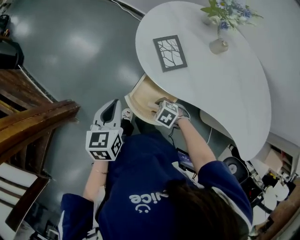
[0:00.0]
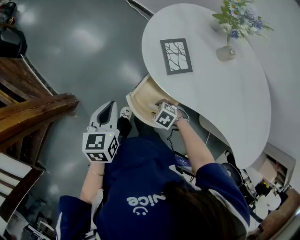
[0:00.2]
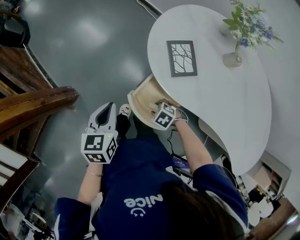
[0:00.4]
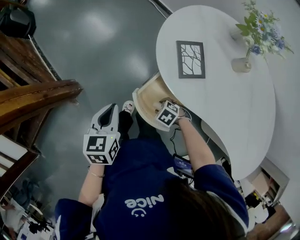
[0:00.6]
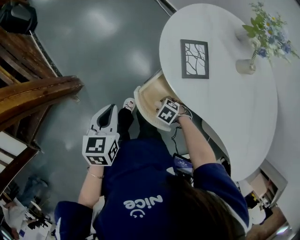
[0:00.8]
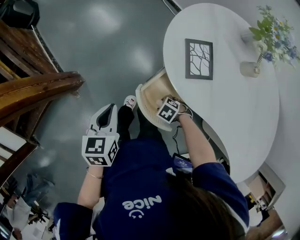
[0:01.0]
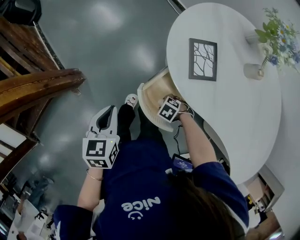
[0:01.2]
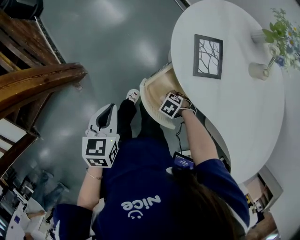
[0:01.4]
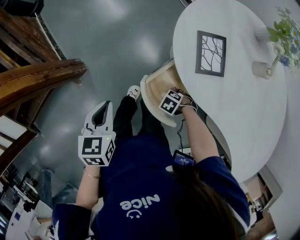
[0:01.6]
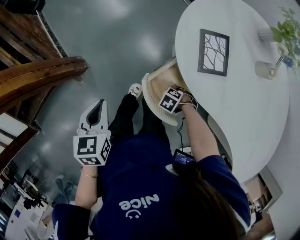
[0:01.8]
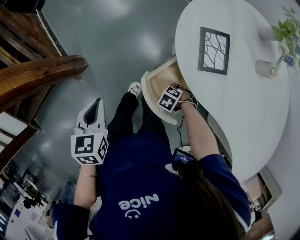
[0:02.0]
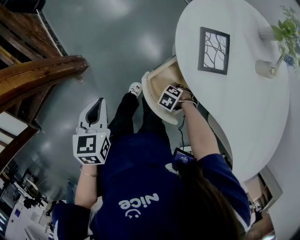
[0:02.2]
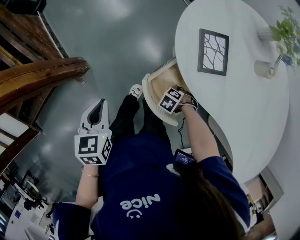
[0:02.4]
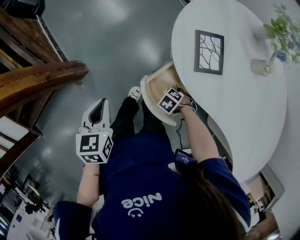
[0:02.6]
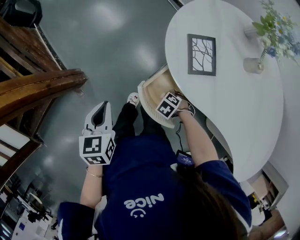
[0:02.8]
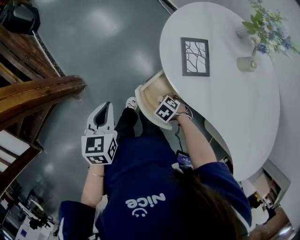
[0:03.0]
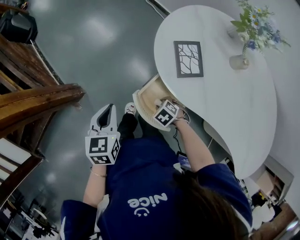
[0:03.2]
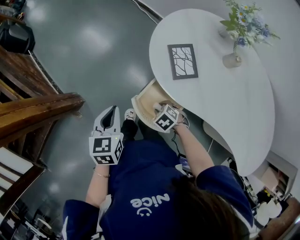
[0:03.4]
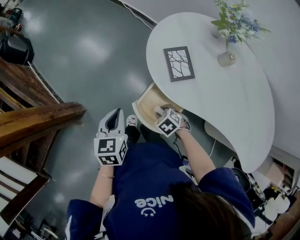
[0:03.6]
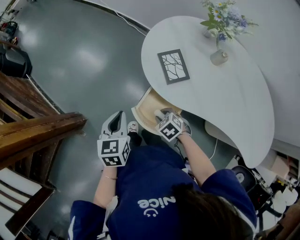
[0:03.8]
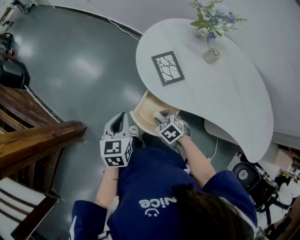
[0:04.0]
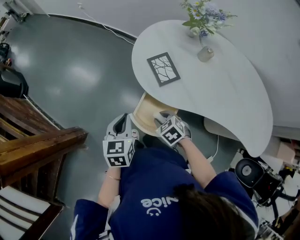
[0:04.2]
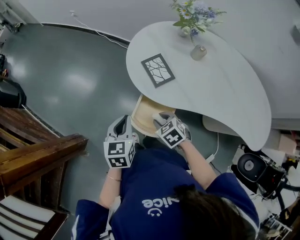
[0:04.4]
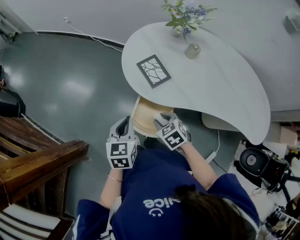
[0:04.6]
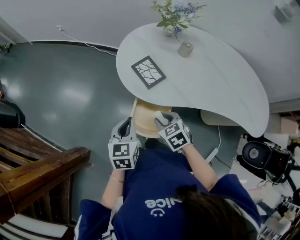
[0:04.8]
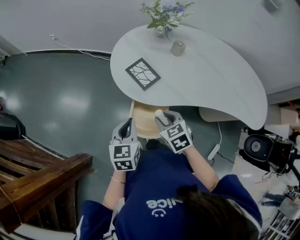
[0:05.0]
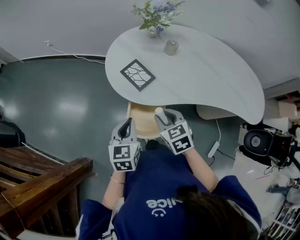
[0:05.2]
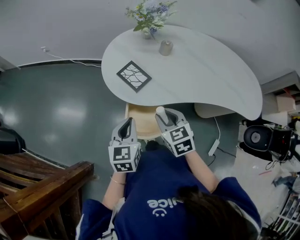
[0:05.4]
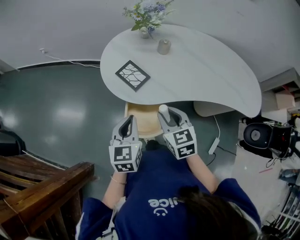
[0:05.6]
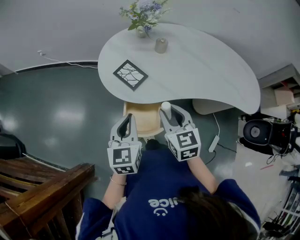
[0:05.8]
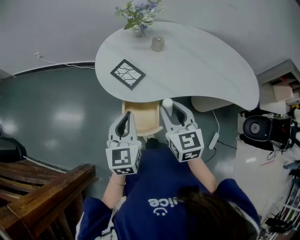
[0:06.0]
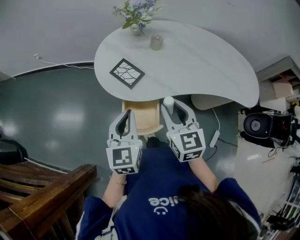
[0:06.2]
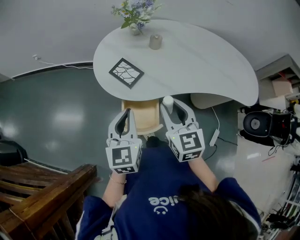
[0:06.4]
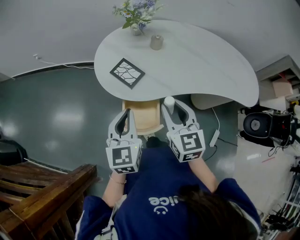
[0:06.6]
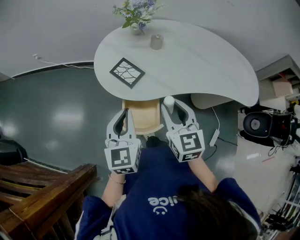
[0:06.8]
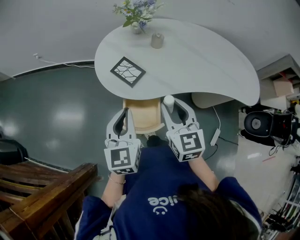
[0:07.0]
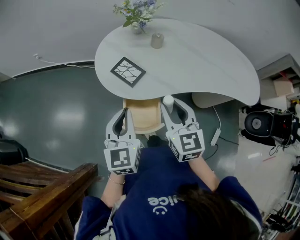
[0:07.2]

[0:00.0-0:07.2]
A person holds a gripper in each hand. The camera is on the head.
0:00.0 to 0:01.4: The right gripper shifts roughly 10 cm downward, and rotates approximately 20 degrees, while the left gripper changes place by roughly 10 cm.
0:01.4 to 0:02.8: The right gripper closes its fingers.
0:02.8 to 0:04.4: The right gripper goes approximately 20 cm upward, and swivels roughly 50 degrees; the left gripper ends up approximately 10 cm from where it was, and swivels roughly 30 degrees.
0:04.4 to 0:05.8: The left gripper heads upward, covering approximately 10 cm, and rotates about 20 degrees, while the right gripper goes about 15 cm upward, and tips its fingers upward by approximately 30 degrees.
0:05.8 to 0:07.2: The grippers make only small movements.

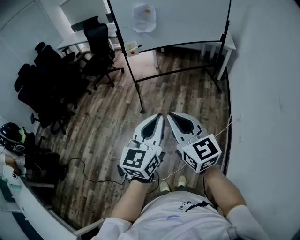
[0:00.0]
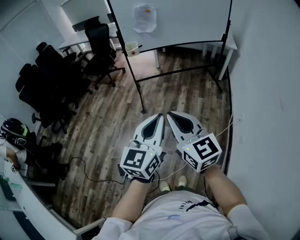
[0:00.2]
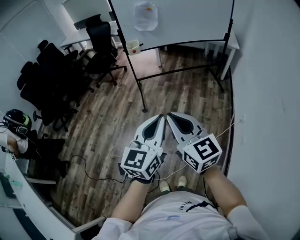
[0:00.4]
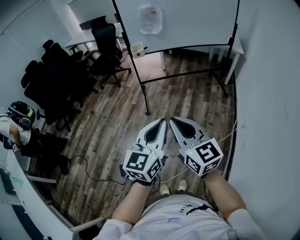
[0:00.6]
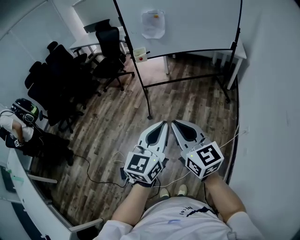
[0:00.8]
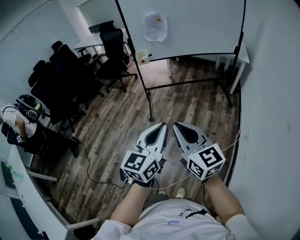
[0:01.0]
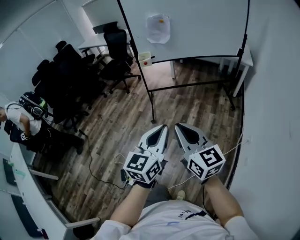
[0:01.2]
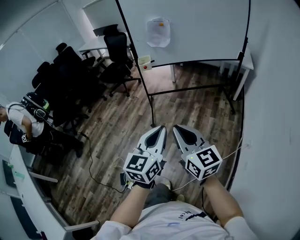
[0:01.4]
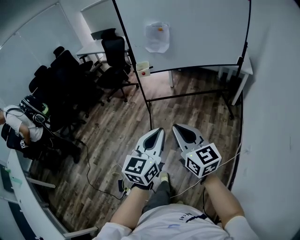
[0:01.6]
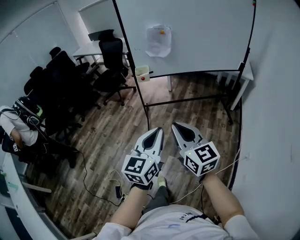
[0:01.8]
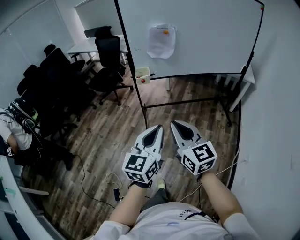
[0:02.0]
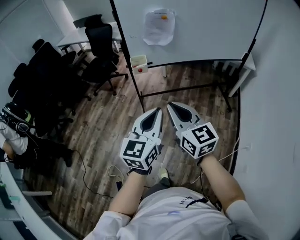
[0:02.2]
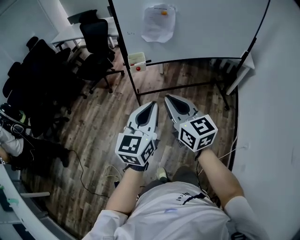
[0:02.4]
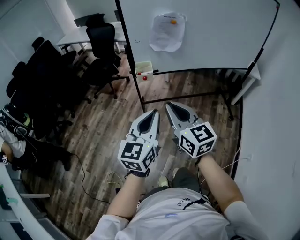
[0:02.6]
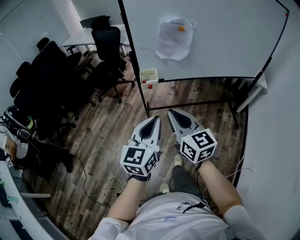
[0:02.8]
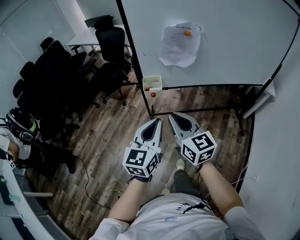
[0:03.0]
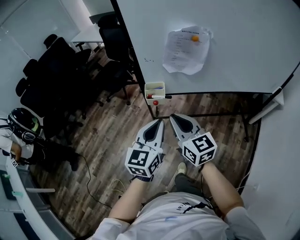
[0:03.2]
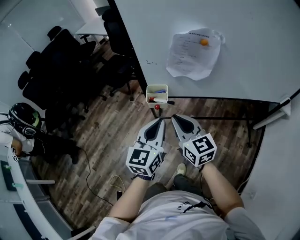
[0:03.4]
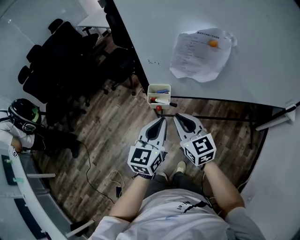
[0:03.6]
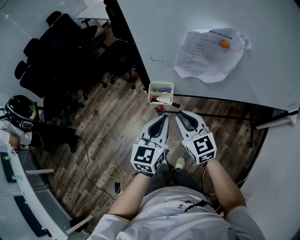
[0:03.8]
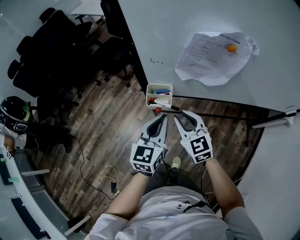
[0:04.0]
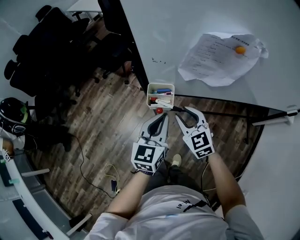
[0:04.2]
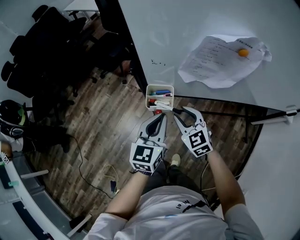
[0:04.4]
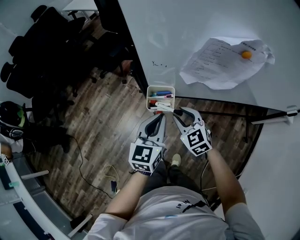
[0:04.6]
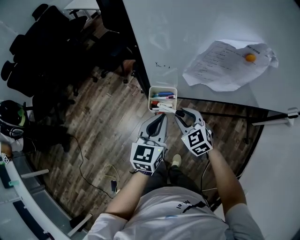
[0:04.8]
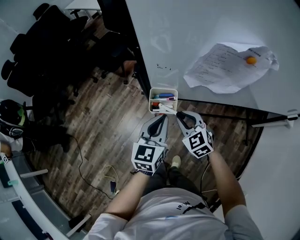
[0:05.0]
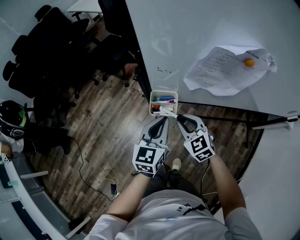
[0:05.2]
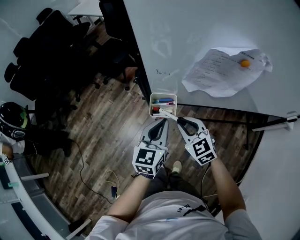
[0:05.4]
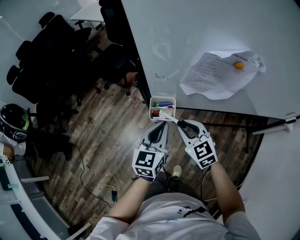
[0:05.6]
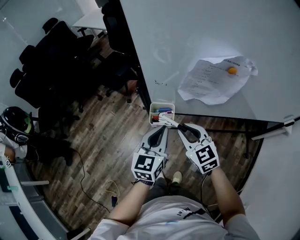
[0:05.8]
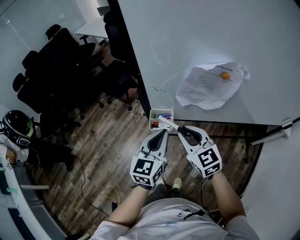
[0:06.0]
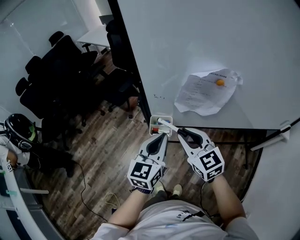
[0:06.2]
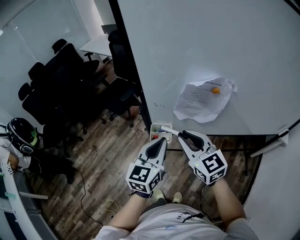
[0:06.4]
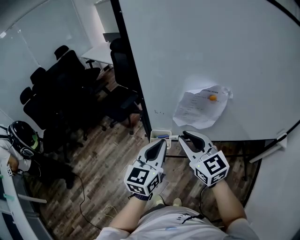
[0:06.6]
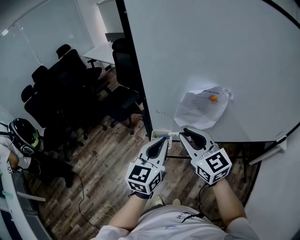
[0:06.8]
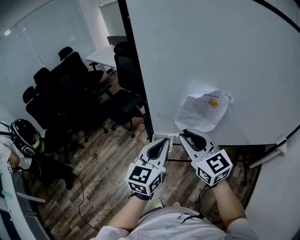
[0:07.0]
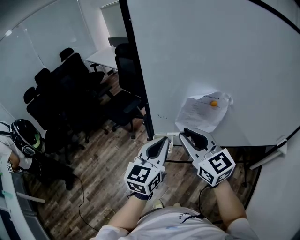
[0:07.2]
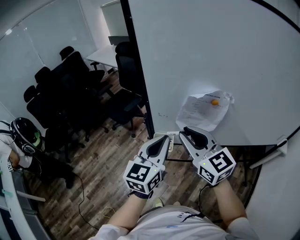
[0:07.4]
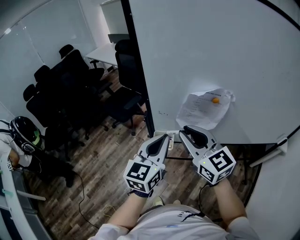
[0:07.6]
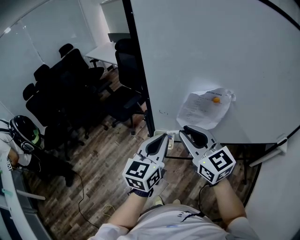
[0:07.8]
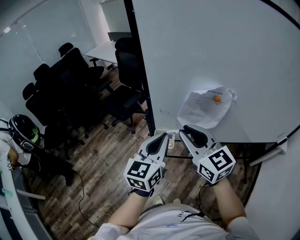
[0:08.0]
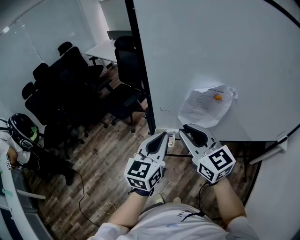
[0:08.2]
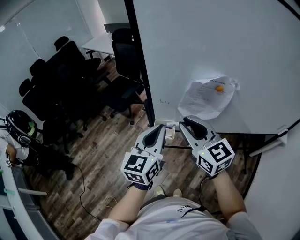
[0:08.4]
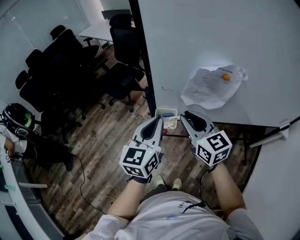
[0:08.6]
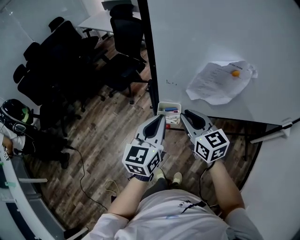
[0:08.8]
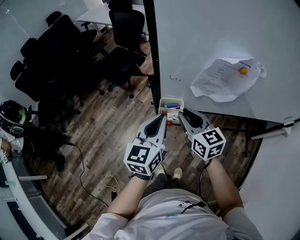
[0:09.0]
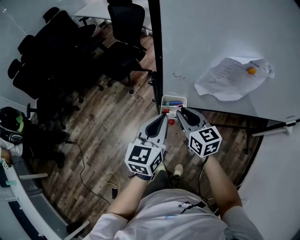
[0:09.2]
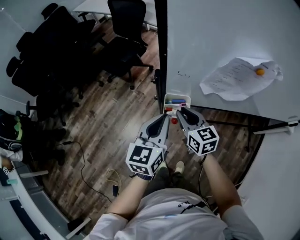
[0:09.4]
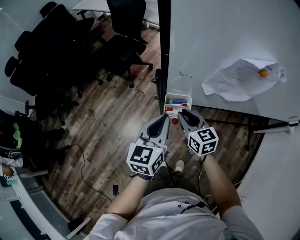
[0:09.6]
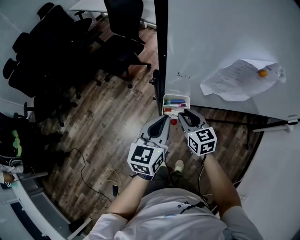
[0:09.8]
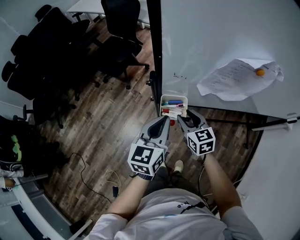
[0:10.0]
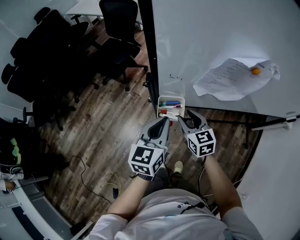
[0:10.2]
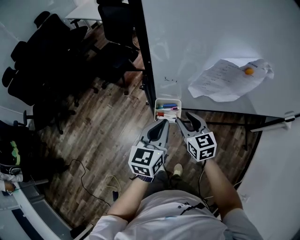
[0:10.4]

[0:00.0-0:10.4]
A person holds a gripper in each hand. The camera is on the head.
0:00.0 to 0:01.4: Both grippers travel together forward and to the right, roughly 10 cm.
0:01.4 to 0:03.0: Both grippers are carried forward, roughly 50 cm.
0:03.0 to 0:04.4: The two grippers go about 30 cm forward and downward. The right gripper turns by roughly 30 degrees, and opens its fingers.
0:04.4 to 0:06.0: The left gripper goes approximately 5 cm upward; the right gripper shifts roughly 15 cm upward.
0:06.0 to 0:07.4: Both grippers travel together upward, roughly 15 cm.
0:07.4 to 0:09.0: The right gripper shifts approximately 20 cm downward, and swivels some 20 degrees. The left gripper shifts about 15 cm downward and to the left.
0:09.0 to 0:10.4: The grippers both shift downward by roughly 10 cm.

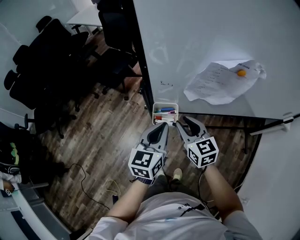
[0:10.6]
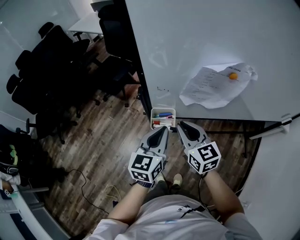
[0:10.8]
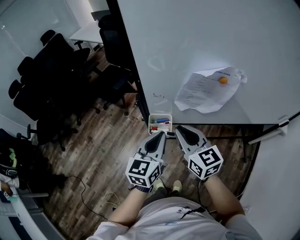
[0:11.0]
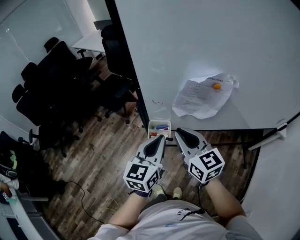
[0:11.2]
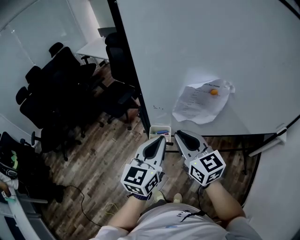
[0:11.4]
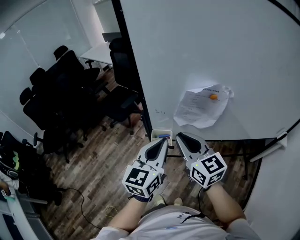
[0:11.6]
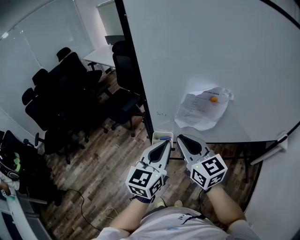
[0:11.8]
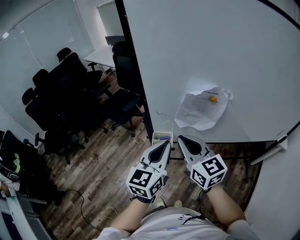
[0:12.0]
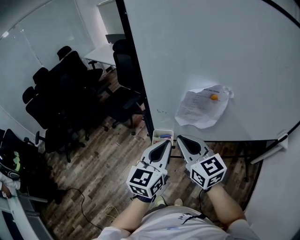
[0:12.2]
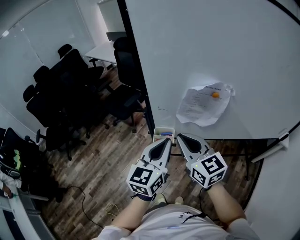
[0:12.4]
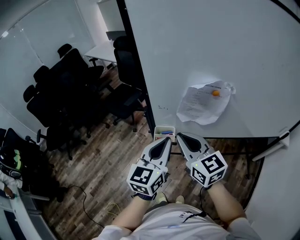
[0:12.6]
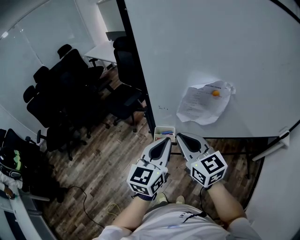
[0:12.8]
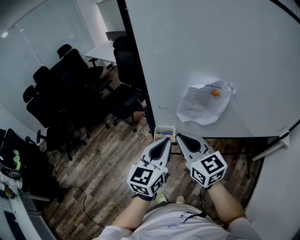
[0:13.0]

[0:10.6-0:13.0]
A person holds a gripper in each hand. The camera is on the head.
0:10.6 to 0:11.8: Both grippers move upward, roughly 15 cm. The right gripper closes up.
0:11.8 to 0:13.0: The grippers make only small movements.

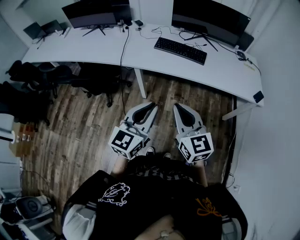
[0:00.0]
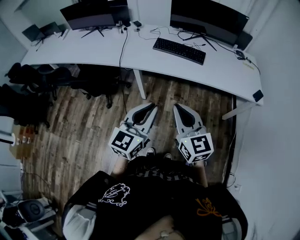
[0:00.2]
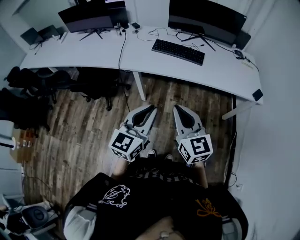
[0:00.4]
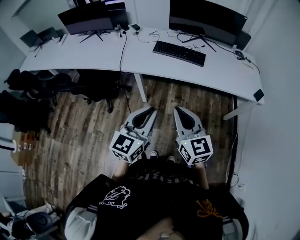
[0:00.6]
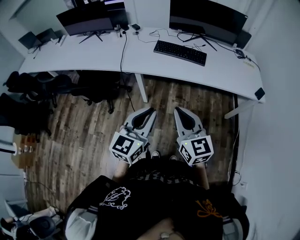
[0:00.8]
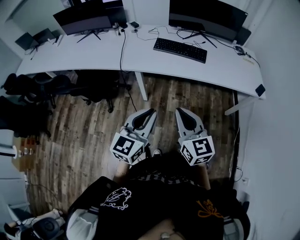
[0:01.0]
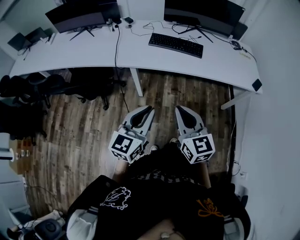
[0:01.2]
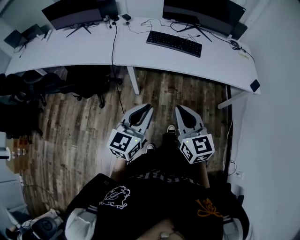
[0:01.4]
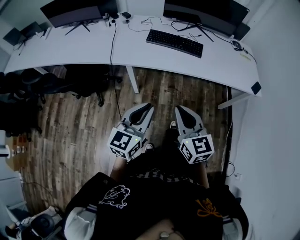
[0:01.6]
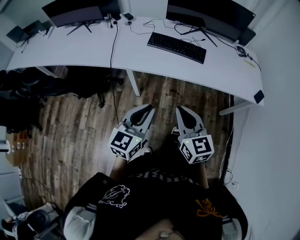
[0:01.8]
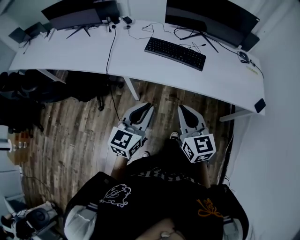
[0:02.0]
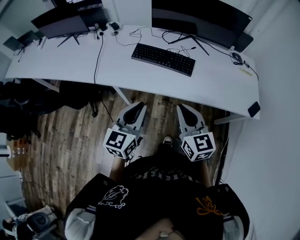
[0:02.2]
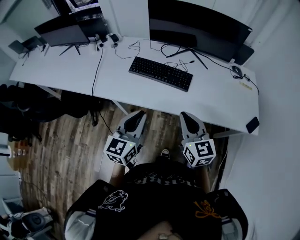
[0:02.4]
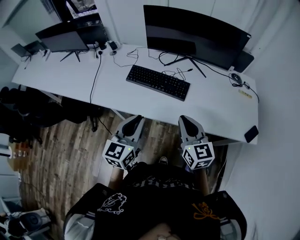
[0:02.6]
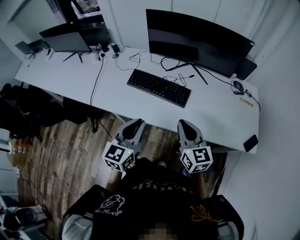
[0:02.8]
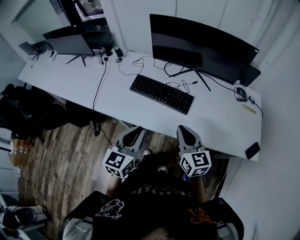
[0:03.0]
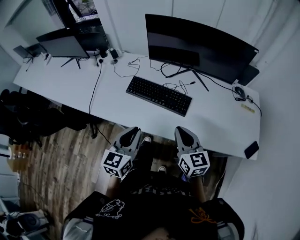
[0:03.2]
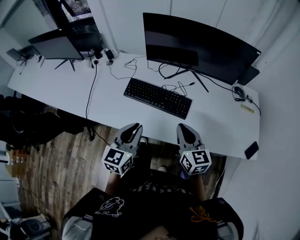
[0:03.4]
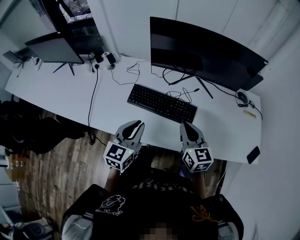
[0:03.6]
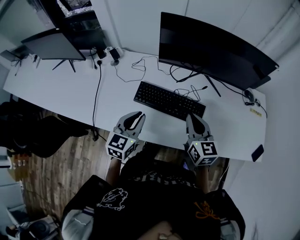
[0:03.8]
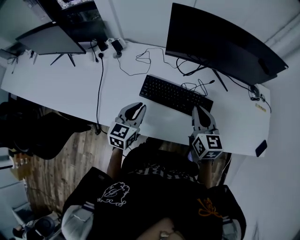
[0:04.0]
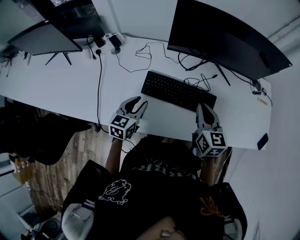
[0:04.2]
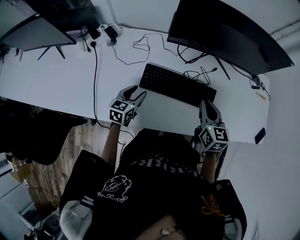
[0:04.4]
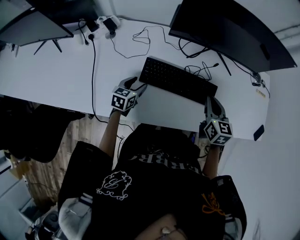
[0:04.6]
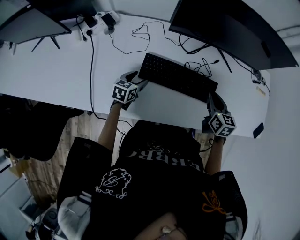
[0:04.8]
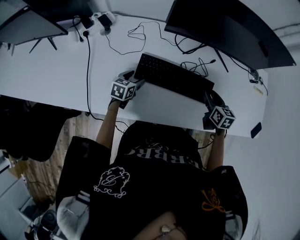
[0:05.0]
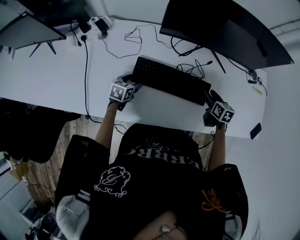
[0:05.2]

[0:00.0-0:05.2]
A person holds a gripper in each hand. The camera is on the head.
0:00.0 to 0:01.8: Both grippers move forward and downward, about 10 cm.
0:01.8 to 0:03.4: The grippers both shift forward and to the right by approximately 35 cm.
0:03.4 to 0:05.2: The right gripper moves forward and downward, some 30 cm, changes its angle by roughly 30 degrees, and opens its fingers. The left gripper moves downward, forward and to the left, roughly 40 cm, tilts its fingers roughly 30 degrees downward, and opens its fingers.
